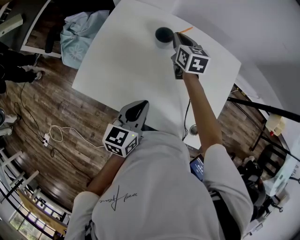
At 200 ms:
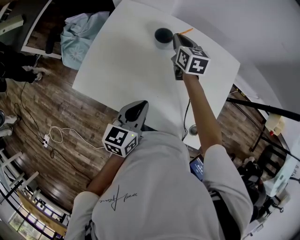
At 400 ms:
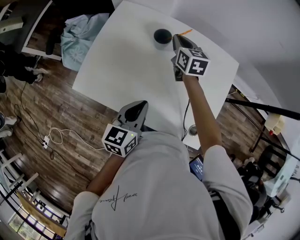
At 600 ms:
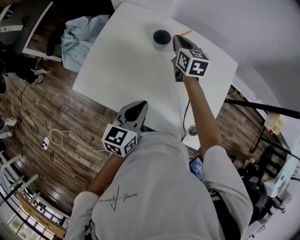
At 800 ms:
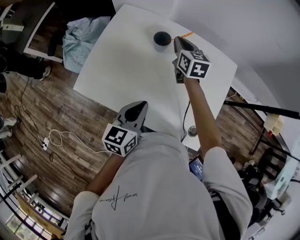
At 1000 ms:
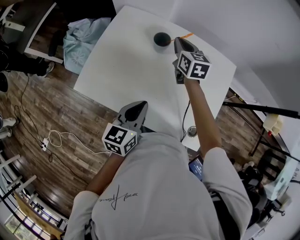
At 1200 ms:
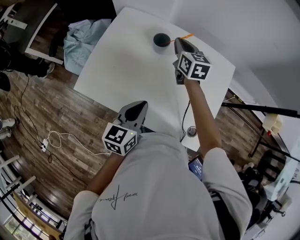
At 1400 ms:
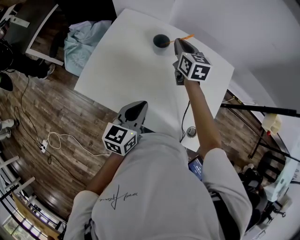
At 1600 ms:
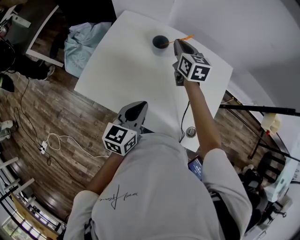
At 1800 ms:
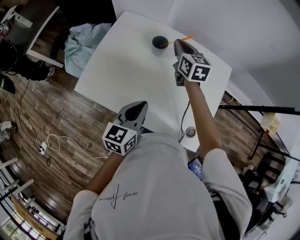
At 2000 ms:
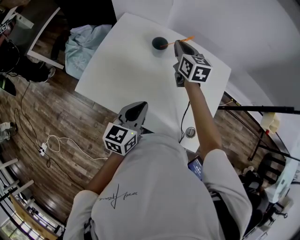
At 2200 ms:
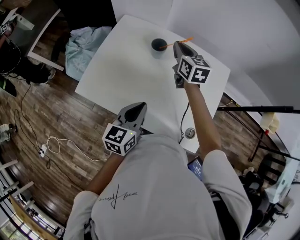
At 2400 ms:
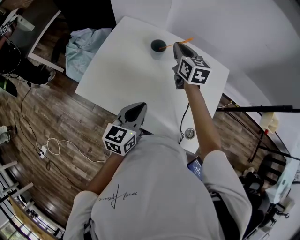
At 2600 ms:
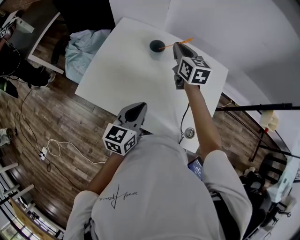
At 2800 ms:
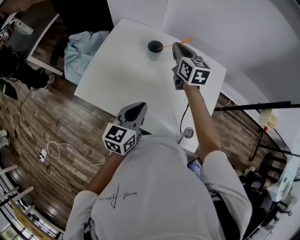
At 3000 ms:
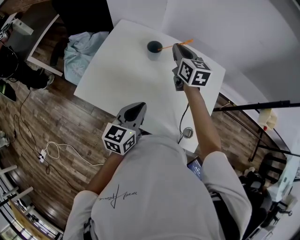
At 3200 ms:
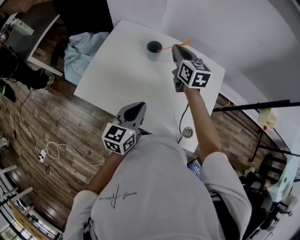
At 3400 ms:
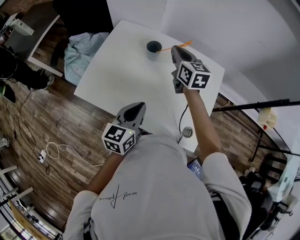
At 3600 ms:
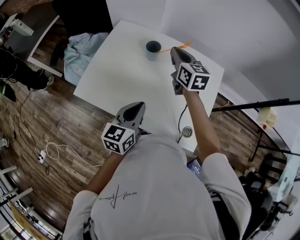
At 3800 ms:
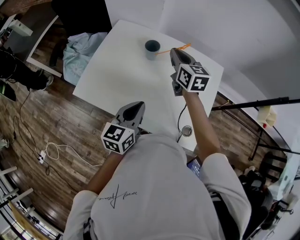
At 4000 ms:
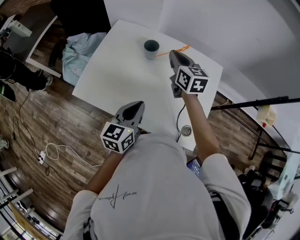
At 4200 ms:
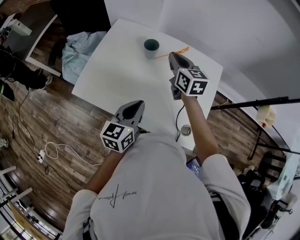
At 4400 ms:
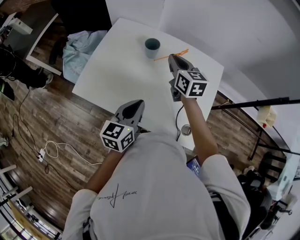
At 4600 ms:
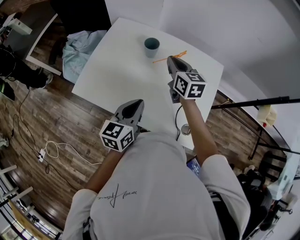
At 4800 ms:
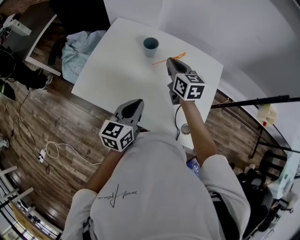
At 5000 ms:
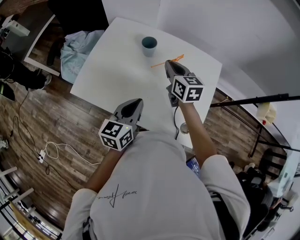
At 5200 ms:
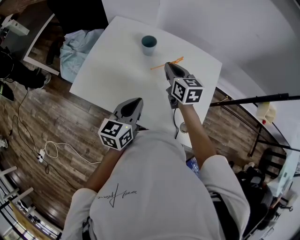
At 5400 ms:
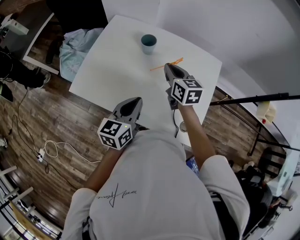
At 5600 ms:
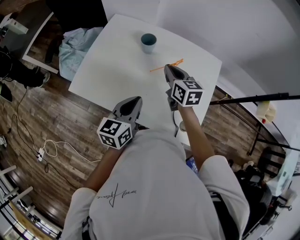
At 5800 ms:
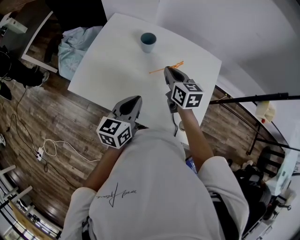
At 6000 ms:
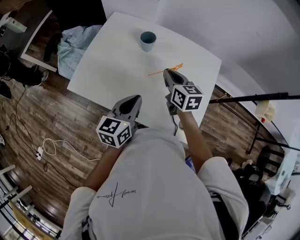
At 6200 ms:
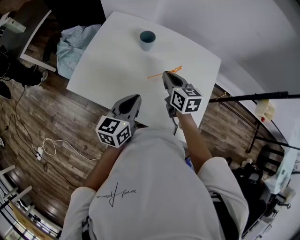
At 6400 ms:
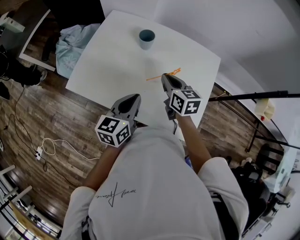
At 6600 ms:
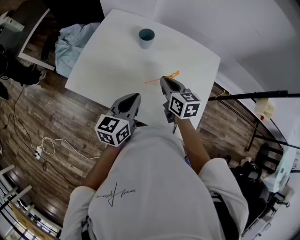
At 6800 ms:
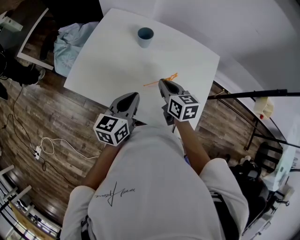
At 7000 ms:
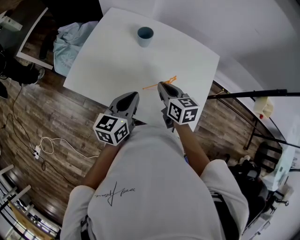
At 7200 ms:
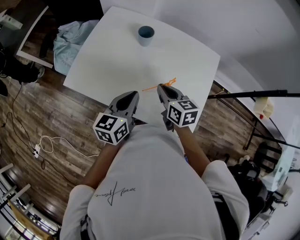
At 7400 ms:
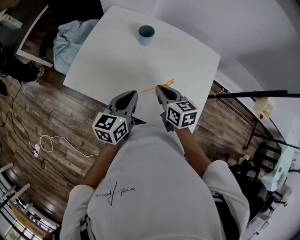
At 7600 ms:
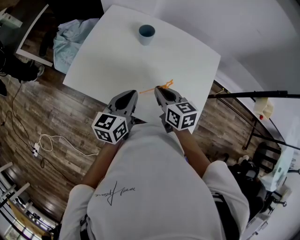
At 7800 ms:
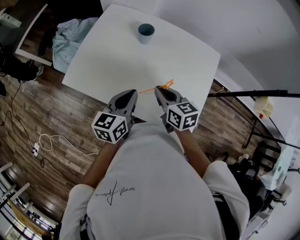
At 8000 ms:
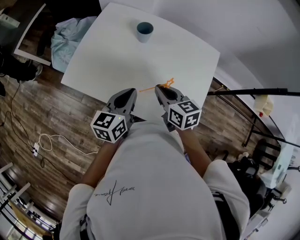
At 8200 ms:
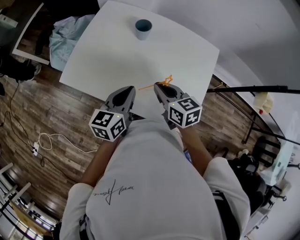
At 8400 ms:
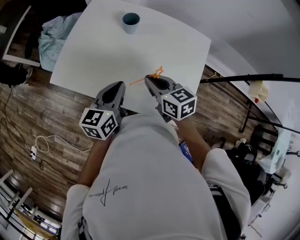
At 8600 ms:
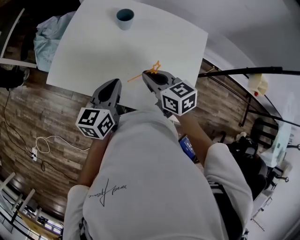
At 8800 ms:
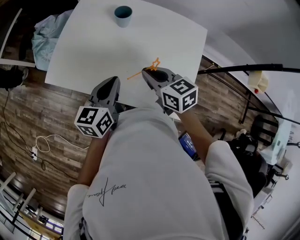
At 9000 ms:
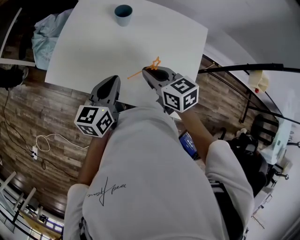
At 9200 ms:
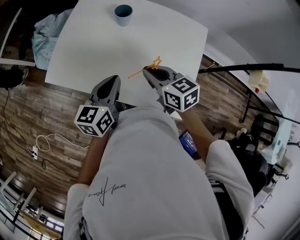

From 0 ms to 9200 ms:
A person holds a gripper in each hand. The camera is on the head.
From 0 ms to 1600 ms: The right gripper shifts roughly 5 cm upward.
From 1600 ms to 3000 ms: The right gripper ends up roughly 5 cm from where it was.
From 3000 ms to 4600 ms: The right gripper shifts roughly 5 cm backward.
From 4600 ms to 6200 ms: The right gripper goes approximately 10 cm backward and downward.
From 6200 ms to 7600 ms: The right gripper shifts some 10 cm backward.
From 7600 ms to 9200 ms: There are only small adjustments of the grippers.

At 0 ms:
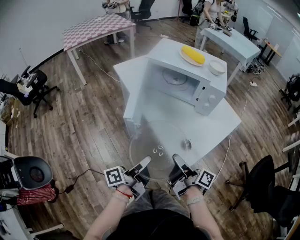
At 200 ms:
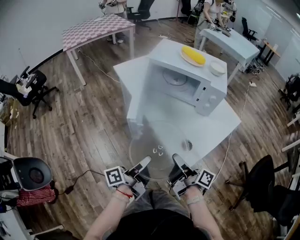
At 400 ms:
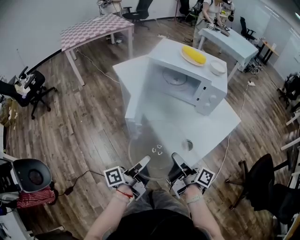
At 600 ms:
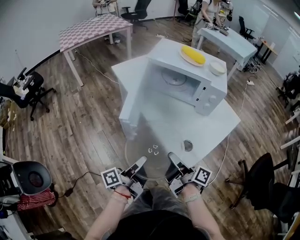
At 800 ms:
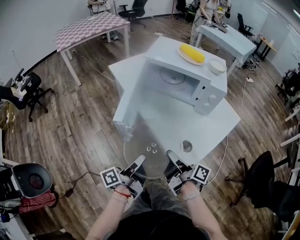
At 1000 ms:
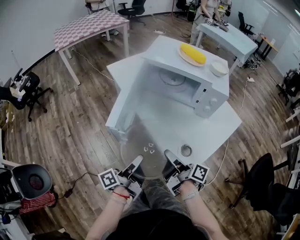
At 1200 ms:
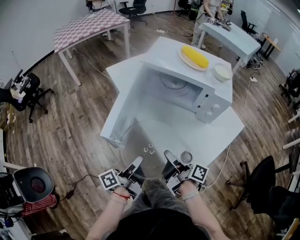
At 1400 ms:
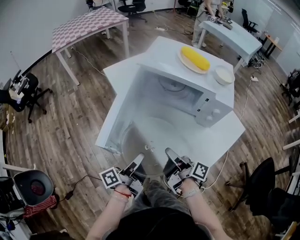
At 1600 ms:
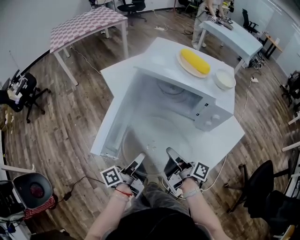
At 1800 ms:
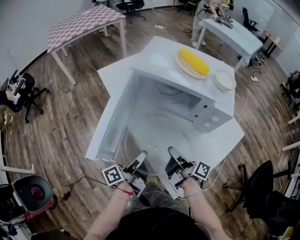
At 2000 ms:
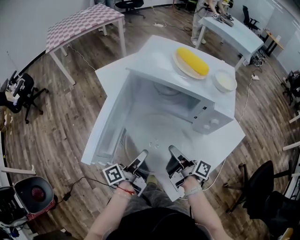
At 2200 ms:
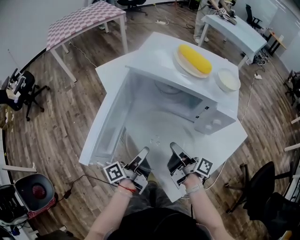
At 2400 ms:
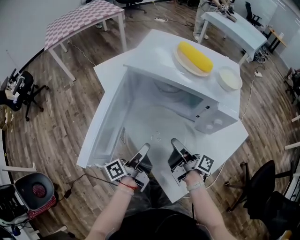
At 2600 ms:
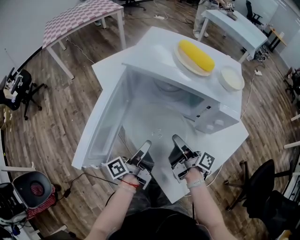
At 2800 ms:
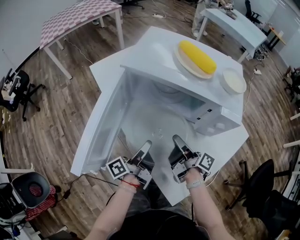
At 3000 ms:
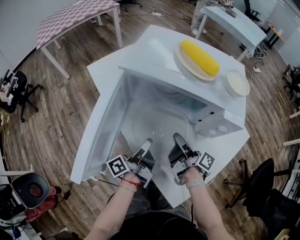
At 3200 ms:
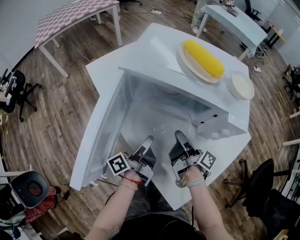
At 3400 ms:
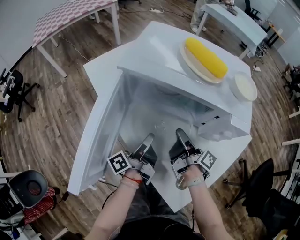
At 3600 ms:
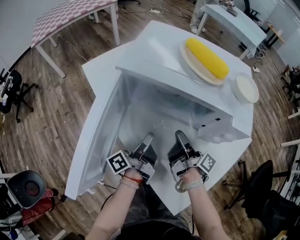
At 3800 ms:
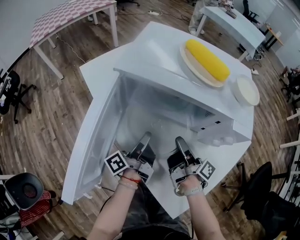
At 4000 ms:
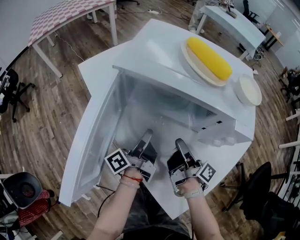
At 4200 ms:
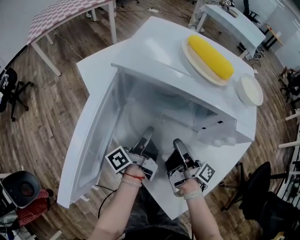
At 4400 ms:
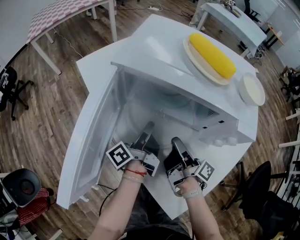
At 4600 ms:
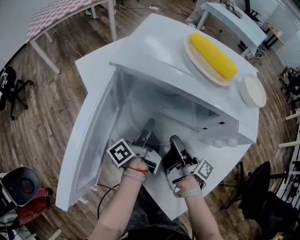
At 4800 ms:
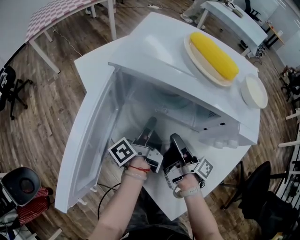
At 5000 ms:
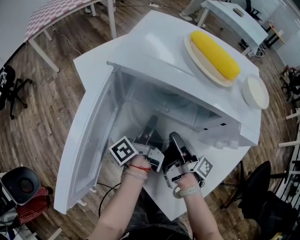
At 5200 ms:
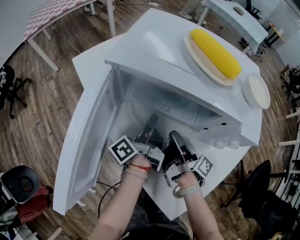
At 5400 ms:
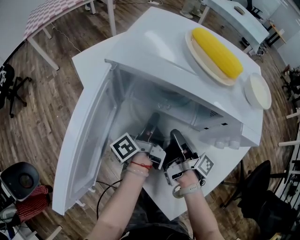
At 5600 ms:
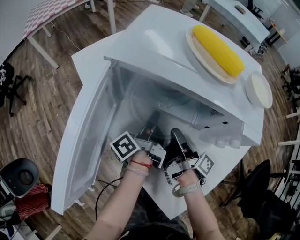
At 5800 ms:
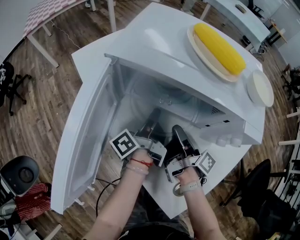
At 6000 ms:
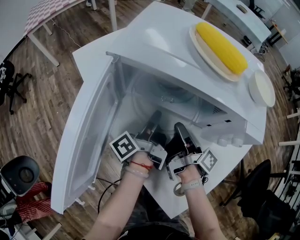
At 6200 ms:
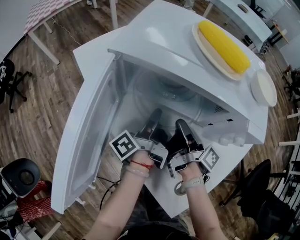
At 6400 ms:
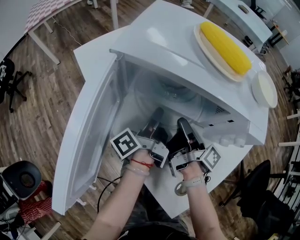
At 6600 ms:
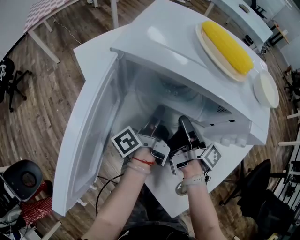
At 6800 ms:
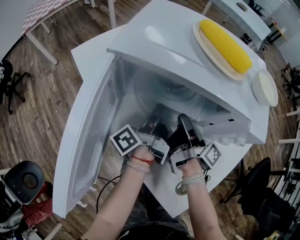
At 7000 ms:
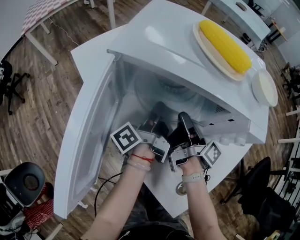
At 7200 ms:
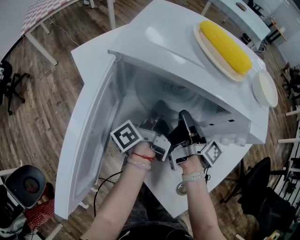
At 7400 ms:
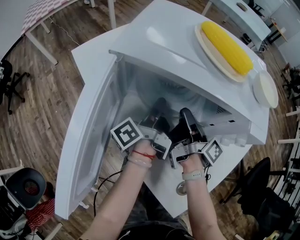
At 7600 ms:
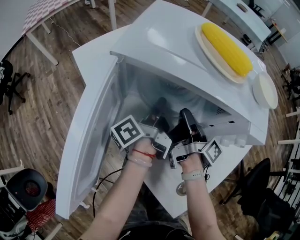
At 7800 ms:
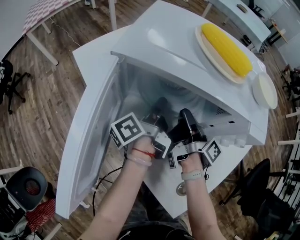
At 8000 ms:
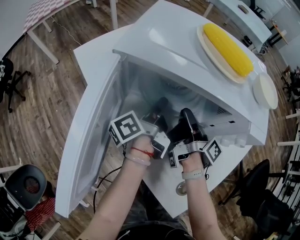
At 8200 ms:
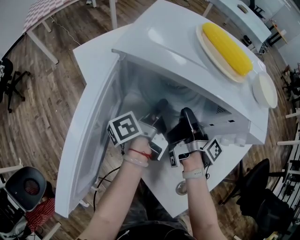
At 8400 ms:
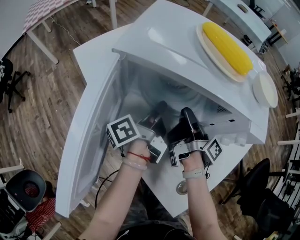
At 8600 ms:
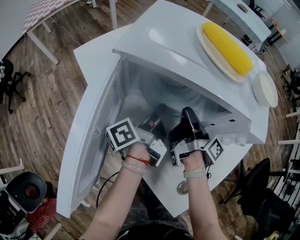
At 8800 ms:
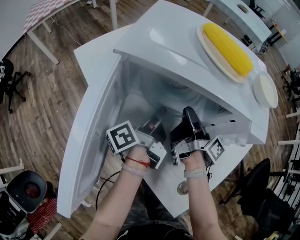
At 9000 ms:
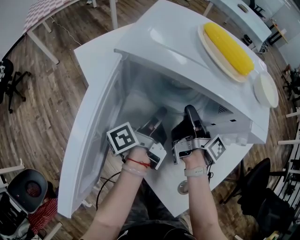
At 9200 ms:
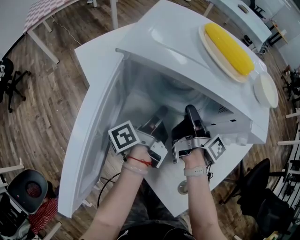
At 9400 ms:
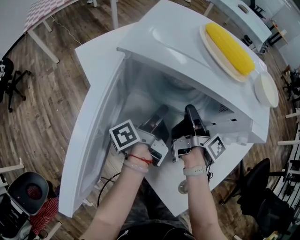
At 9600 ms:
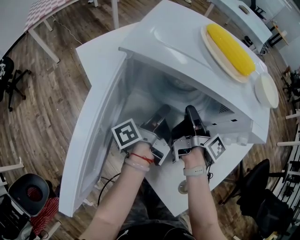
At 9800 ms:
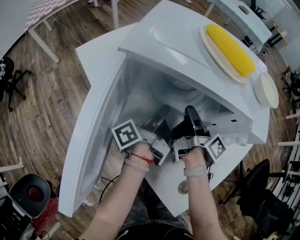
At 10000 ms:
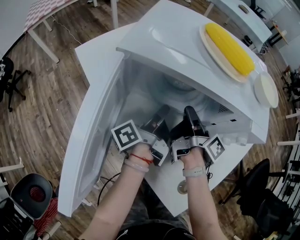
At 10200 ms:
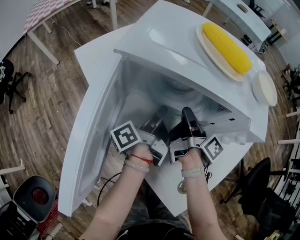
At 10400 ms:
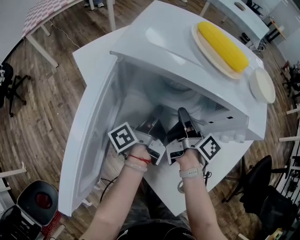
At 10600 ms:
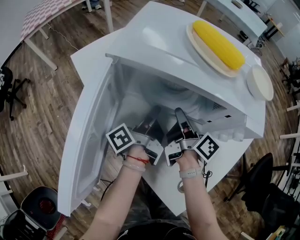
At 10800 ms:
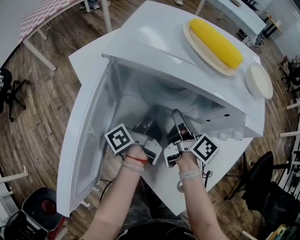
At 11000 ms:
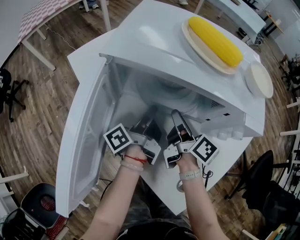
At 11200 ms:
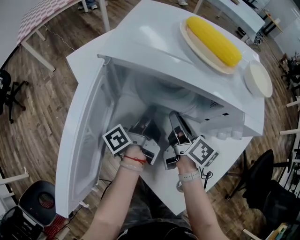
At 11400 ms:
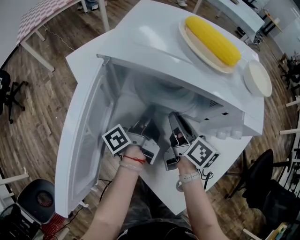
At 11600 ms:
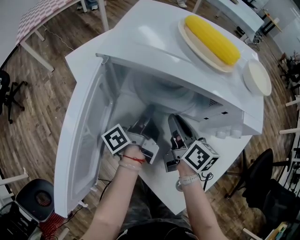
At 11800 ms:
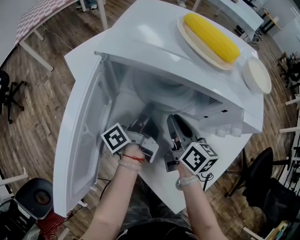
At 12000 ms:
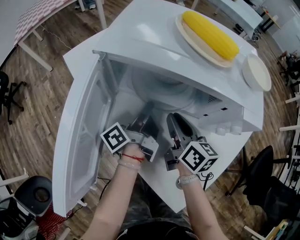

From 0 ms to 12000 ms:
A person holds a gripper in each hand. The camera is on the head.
From 0 ms to 1600 ms: The right gripper moves roughly 15 cm.
From 1600 ms to 3000 ms: The right gripper ends up roughly 15 cm from where it was.
From 10400 ms to 12000 ms: The right gripper rotates around the line of its fingers by approximately 40 degrees, counterclockwise from behind.

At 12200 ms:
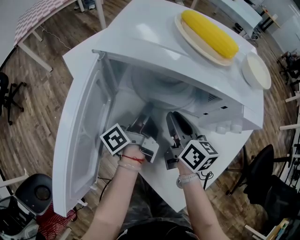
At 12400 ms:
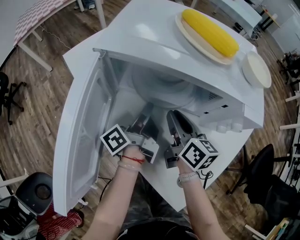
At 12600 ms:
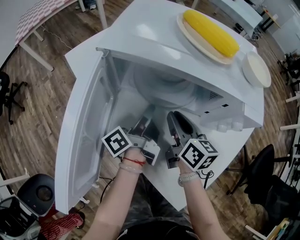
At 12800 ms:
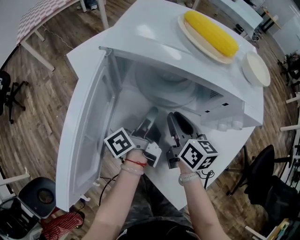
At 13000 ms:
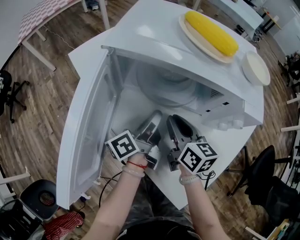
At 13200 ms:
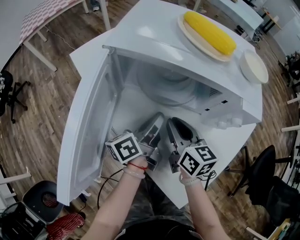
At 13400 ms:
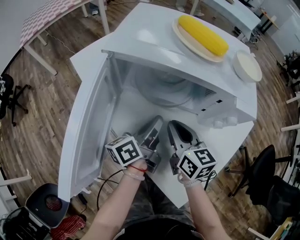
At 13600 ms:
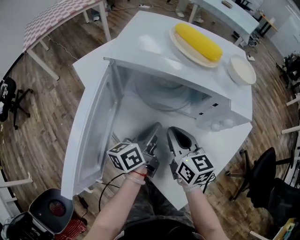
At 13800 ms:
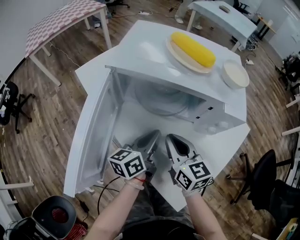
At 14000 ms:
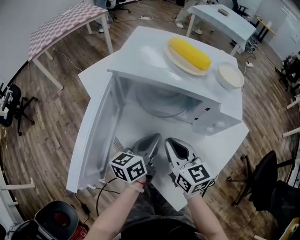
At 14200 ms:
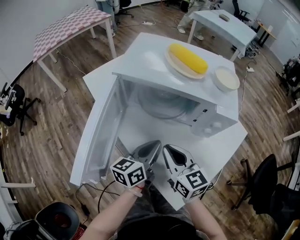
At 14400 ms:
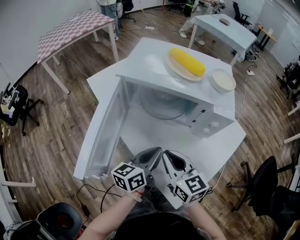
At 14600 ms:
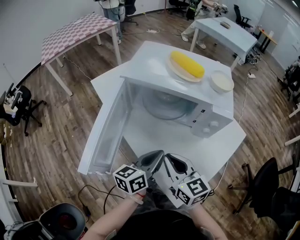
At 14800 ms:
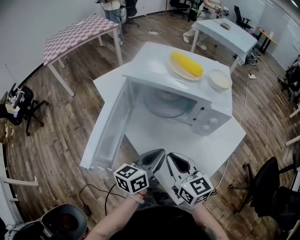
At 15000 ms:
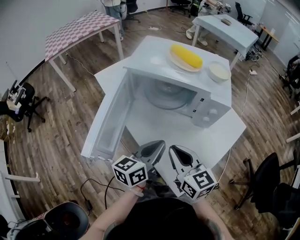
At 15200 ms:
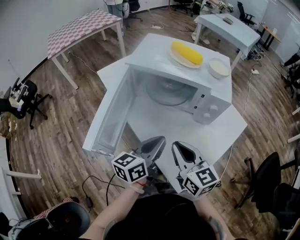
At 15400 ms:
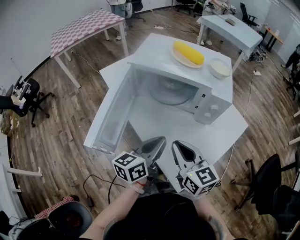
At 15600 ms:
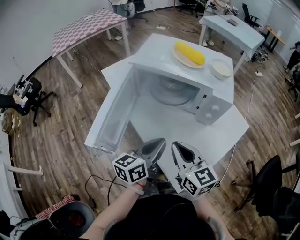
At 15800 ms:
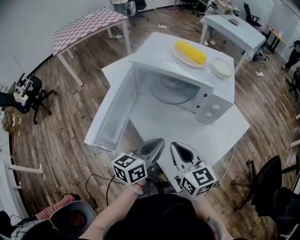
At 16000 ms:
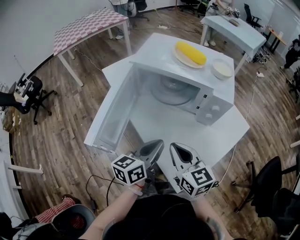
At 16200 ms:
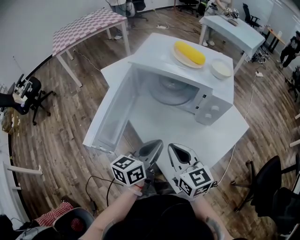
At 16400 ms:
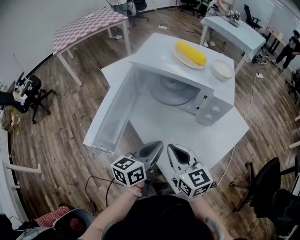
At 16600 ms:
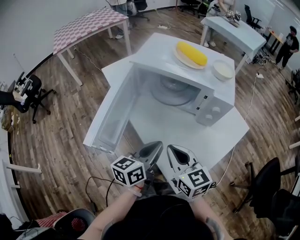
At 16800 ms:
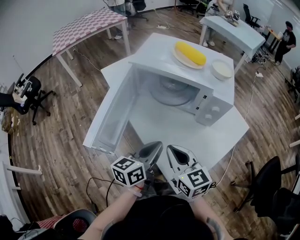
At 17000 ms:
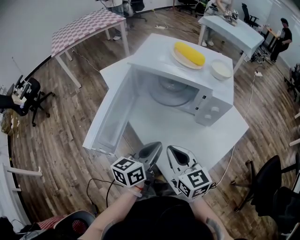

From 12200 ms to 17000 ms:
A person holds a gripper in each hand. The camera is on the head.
From 12200 ms to 13800 ms: The right gripper ends up roughly 10 cm from where it was, and swivels about 20 degrees.
From 13800 ms to 15400 ms: The right gripper ends up approximately 15 cm from where it was.
